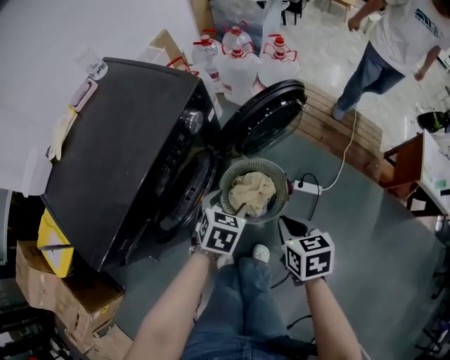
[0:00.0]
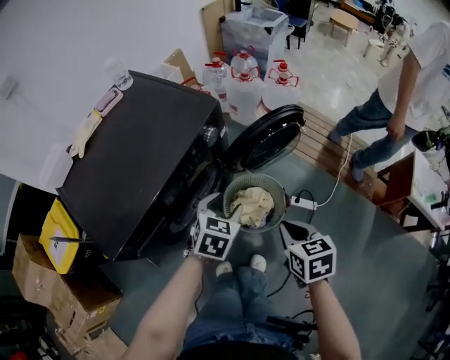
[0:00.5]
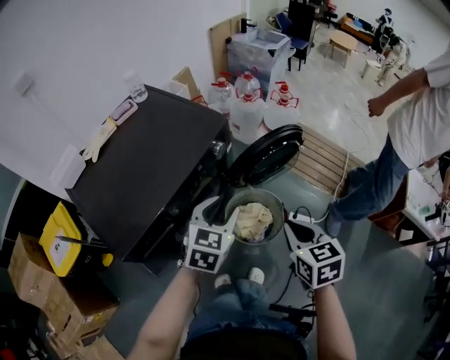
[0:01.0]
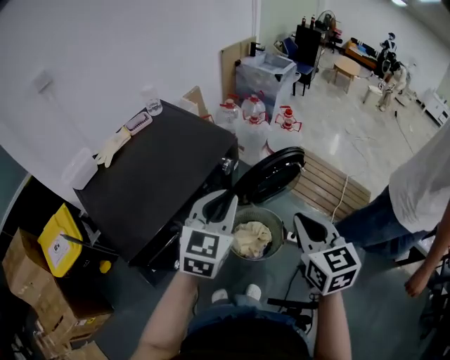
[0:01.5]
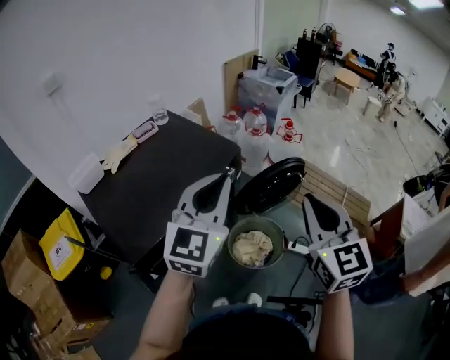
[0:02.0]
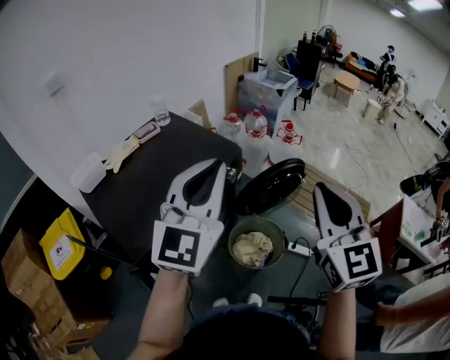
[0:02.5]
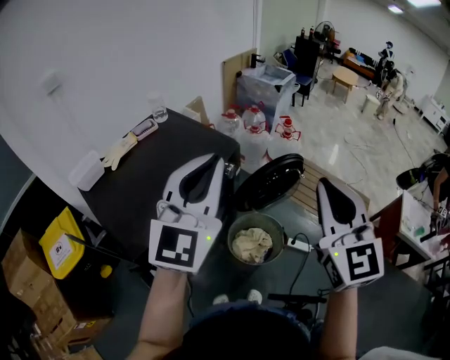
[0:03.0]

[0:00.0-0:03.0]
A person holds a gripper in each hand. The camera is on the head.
0:00.0 to 0:01.5: Both grippers move upward, approximately 30 cm. The left gripper points its fingers roughly 40 degrees further upward, and closes its fingers. Meanwhile the right gripper turns by approximately 30 degrees.
0:01.5 to 0:03.0: Both grippers move upward, approximately 15 cm. The right gripper swivels about 30 degrees, while the left gripper changes its angle by approximately 30 degrees.

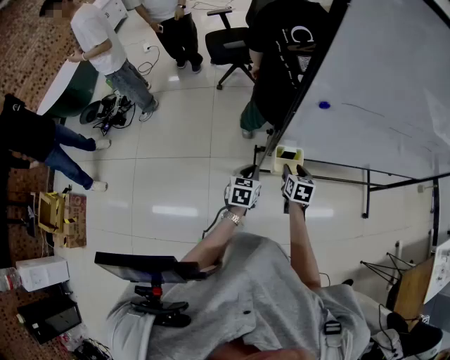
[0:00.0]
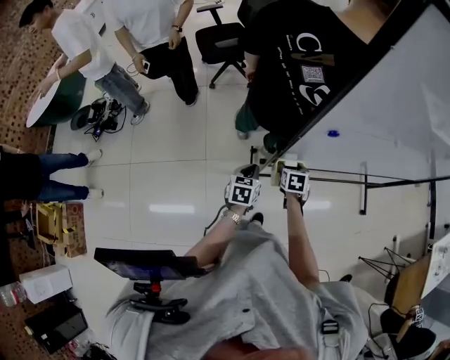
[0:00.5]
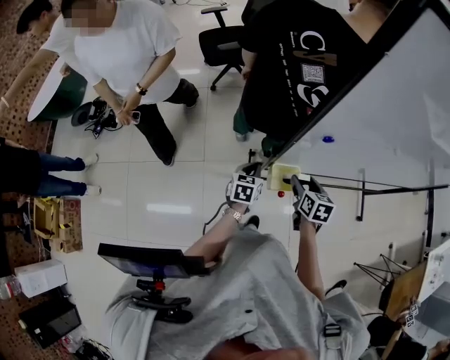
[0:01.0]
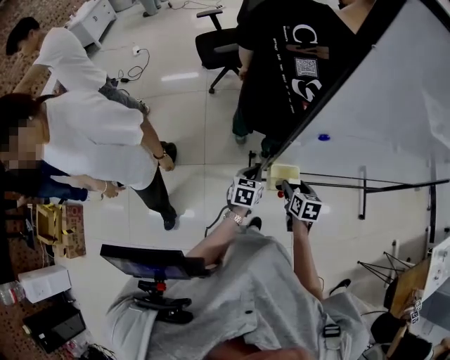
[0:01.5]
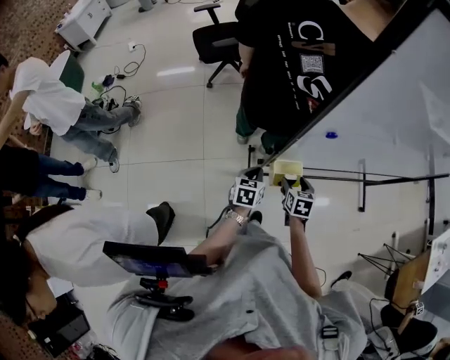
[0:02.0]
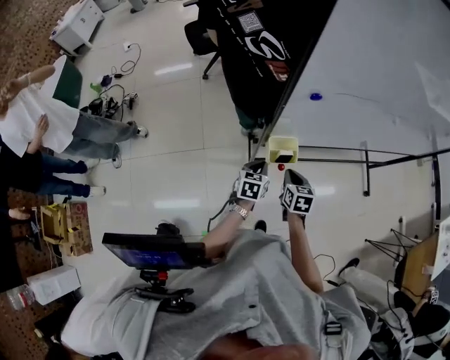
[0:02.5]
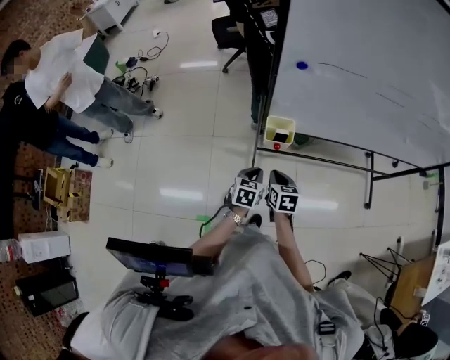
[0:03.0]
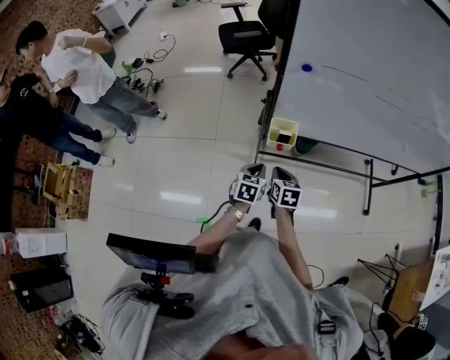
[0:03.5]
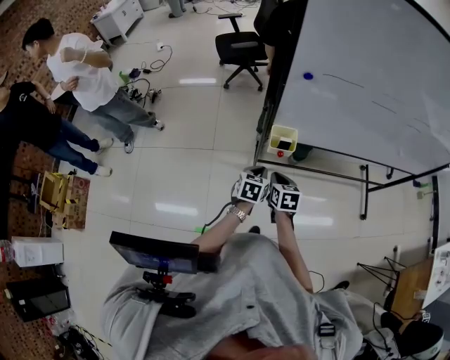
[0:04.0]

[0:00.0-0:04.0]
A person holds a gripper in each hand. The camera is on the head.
0:00.0 to 0:02.0: The left gripper travels forward by some 5 cm. The right gripper goes up and down, some 10 cm each way, reversing 2 times, and opens its fingers.
0:02.0 to 0:04.0: The two grippers go approximately 20 cm backward. The right gripper closes its fingers.

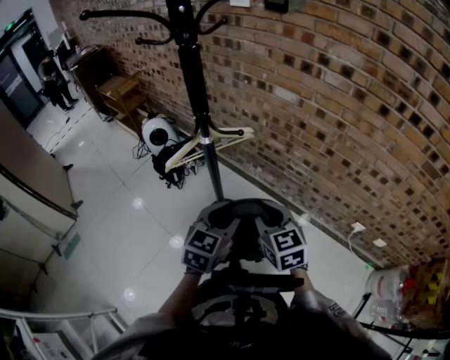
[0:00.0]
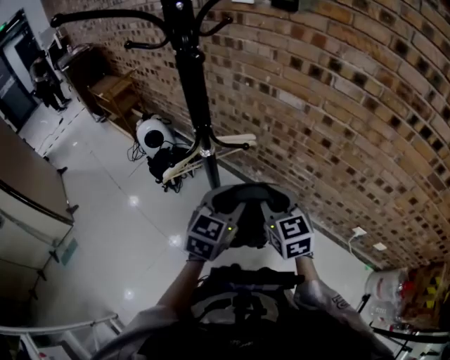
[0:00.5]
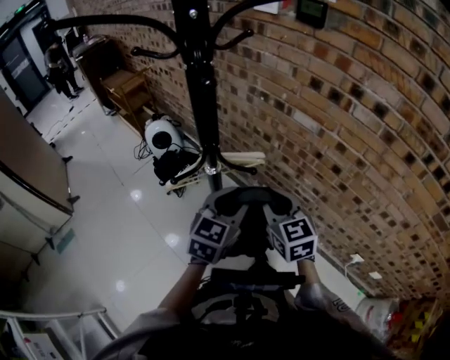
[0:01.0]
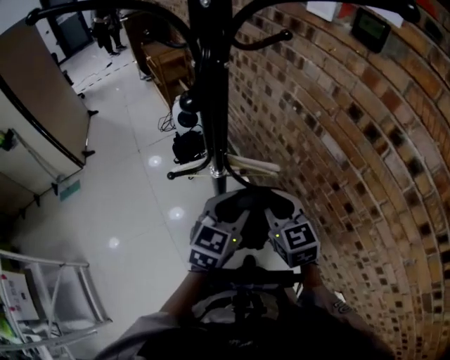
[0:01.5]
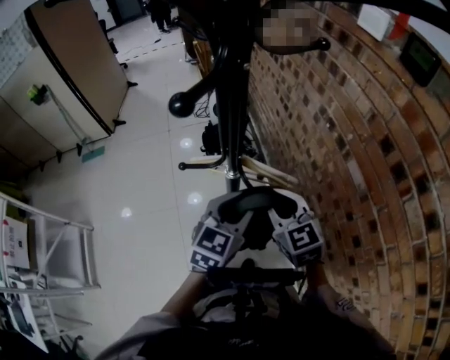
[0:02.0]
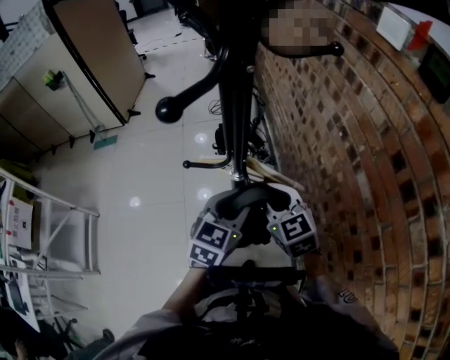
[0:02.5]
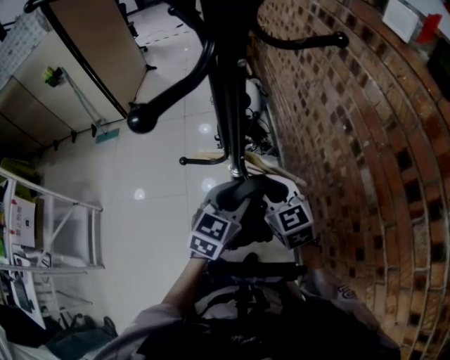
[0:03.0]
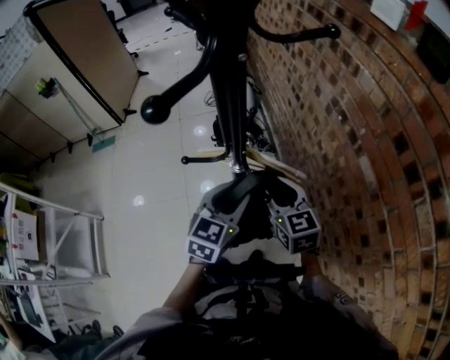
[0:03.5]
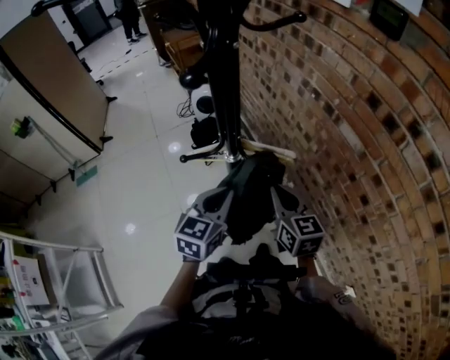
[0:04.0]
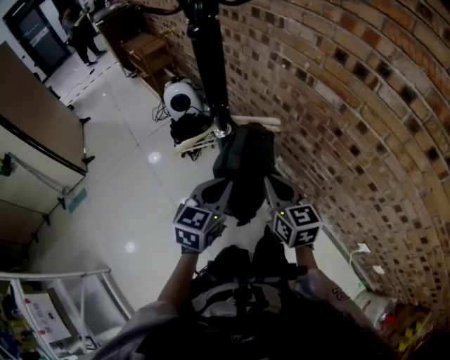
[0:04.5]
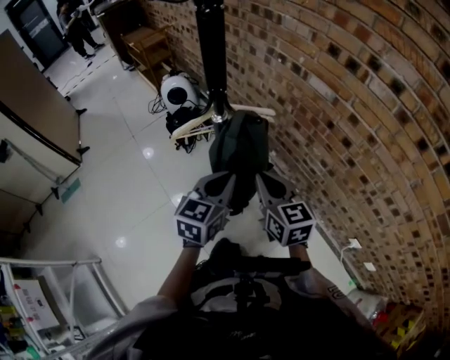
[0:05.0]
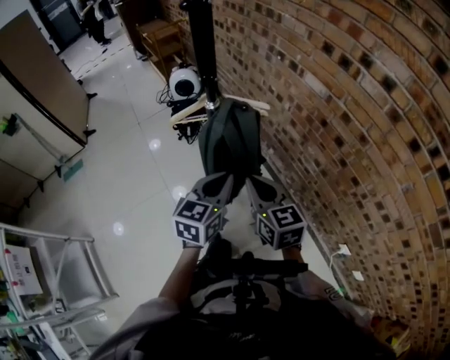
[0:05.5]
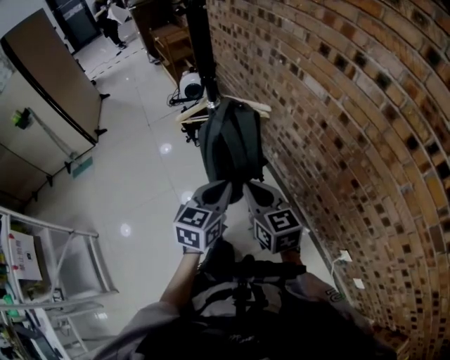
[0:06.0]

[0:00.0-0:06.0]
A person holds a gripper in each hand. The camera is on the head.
0:00.0 to 0:02.0: The right gripper shifts by approximately 25 cm, and turns by some 50 degrees; the left gripper ends up roughly 20 cm from where it was, and turns by roughly 30 degrees.
0:02.0 to 0:04.0: The left gripper travels to the left by approximately 5 cm, and closes, while the right gripper ends up approximately 5 cm from where it was, and rotates about 30 degrees.
0:04.0 to 0:06.0: The right gripper travels backward by some 20 cm. The left gripper is displaced backward and to the right by about 20 cm.

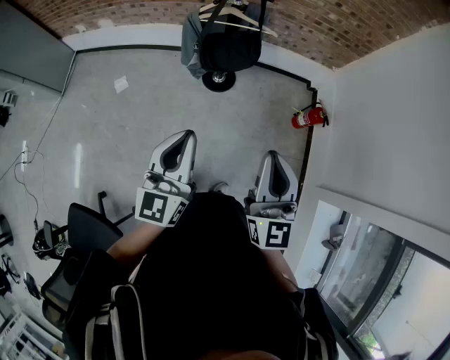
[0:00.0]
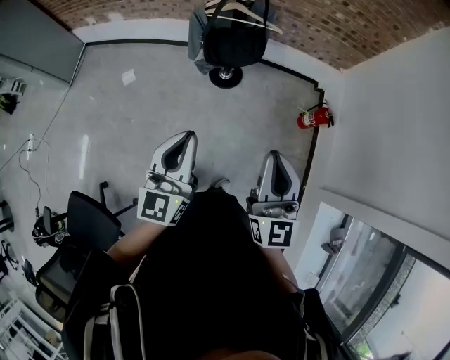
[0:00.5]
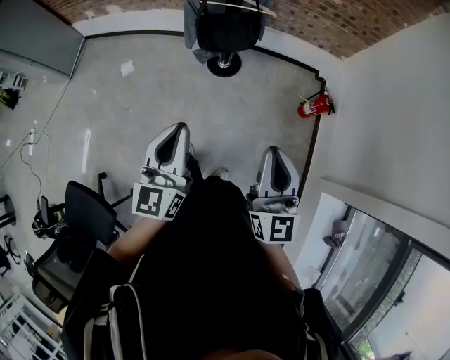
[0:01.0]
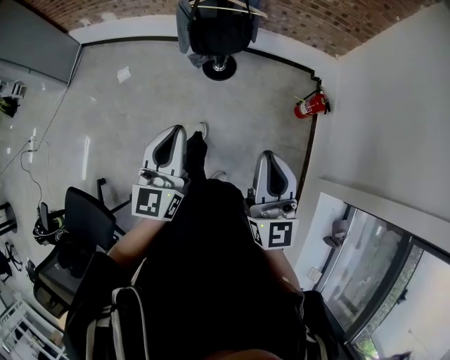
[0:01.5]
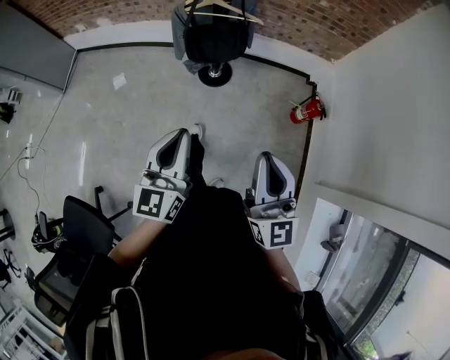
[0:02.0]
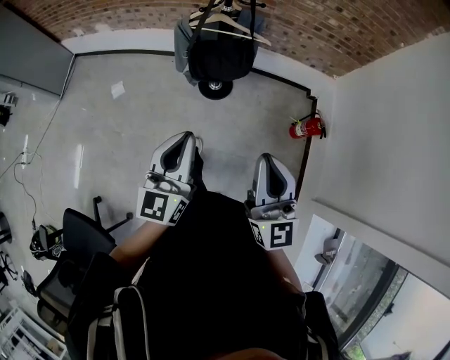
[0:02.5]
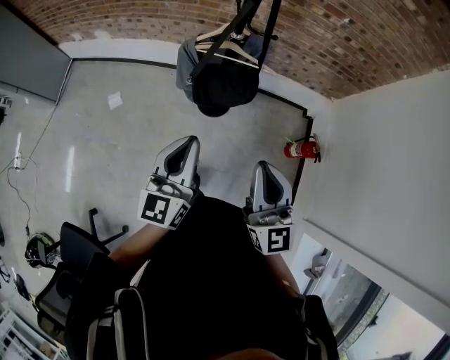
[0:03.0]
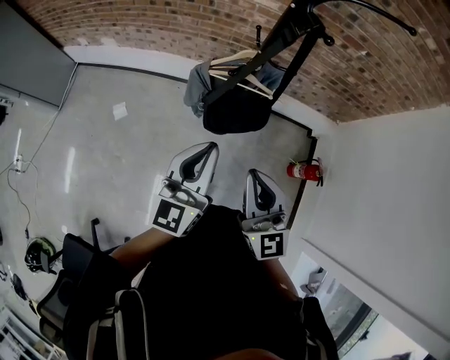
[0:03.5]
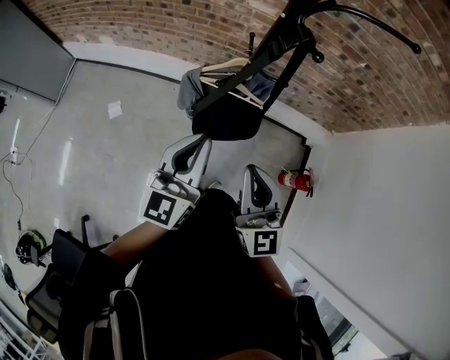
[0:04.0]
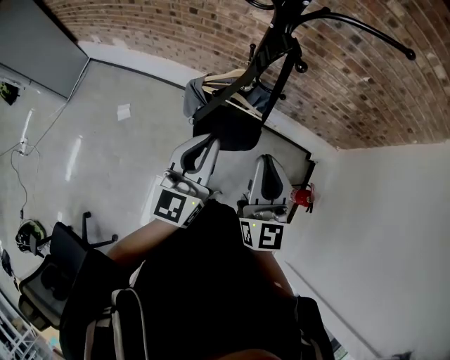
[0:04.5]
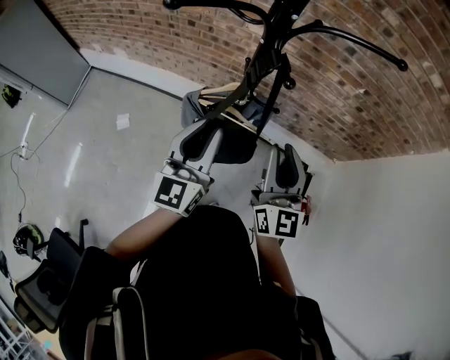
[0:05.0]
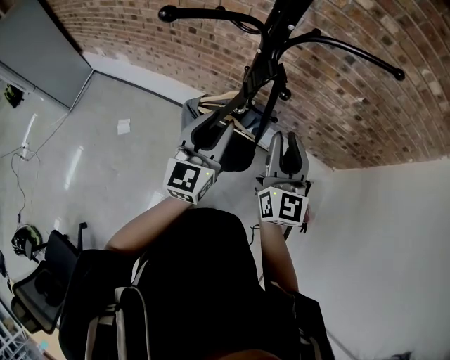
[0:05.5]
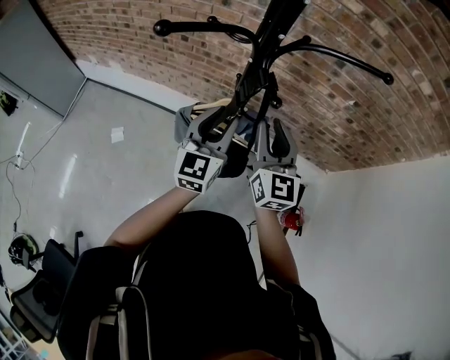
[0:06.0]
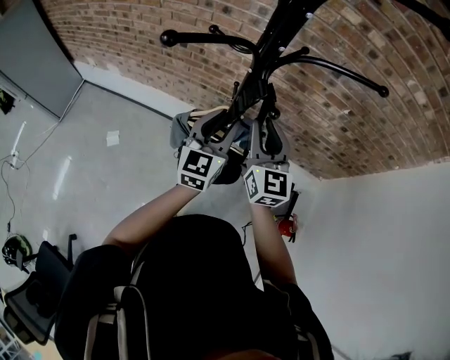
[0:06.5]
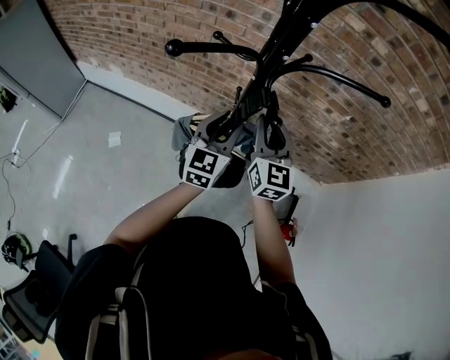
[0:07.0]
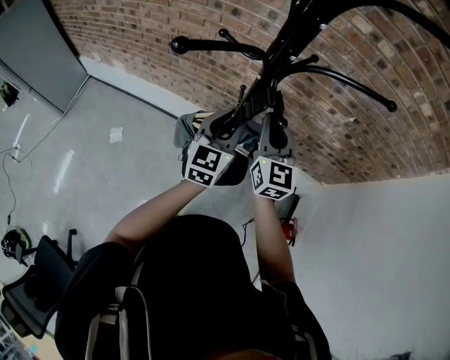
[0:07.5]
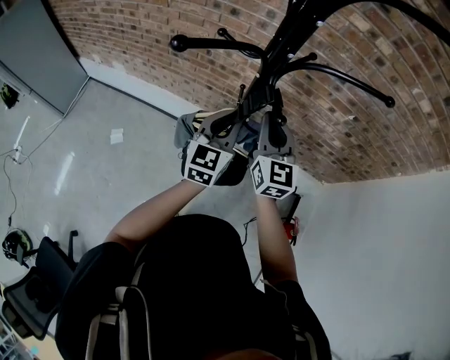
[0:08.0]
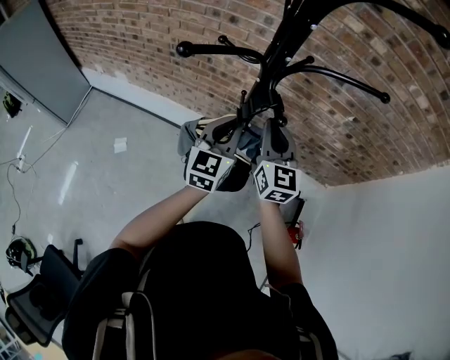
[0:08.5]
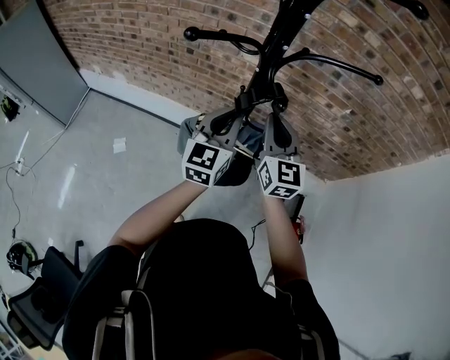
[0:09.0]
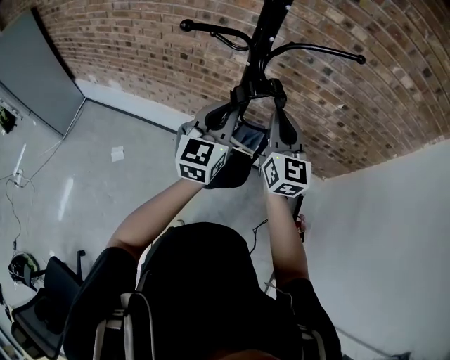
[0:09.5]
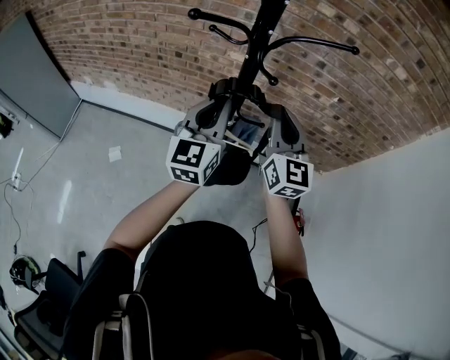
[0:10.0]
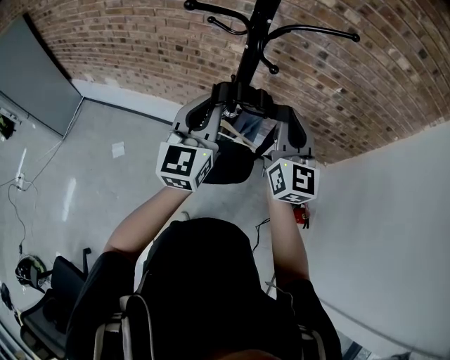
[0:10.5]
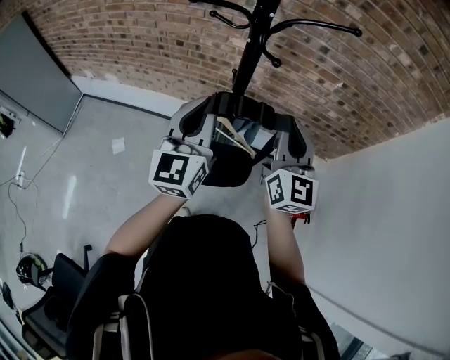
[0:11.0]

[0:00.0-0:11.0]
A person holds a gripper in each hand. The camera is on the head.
0:00.0 to 0:02.0: The grippers both shift to the right by approximately 10 cm.
0:02.0 to 0:03.5: The left gripper shifts about 30 cm forward. Meanwhile the right gripper moves forward and to the left, some 35 cm.
0:03.5 to 0:05.5: Both grippers move forward and to the right, approximately 25 cm. The left gripper opens.
0:05.5 to 0:07.5: Both grippers travel together forward, approximately 10 cm.
0:07.5 to 0:09.0: The left gripper goes about 5 cm upward, and closes up.
0:09.0 to 0:11.0: The right gripper is displaced backward by approximately 10 cm; the left gripper is displaced backward and upward by approximately 10 cm.

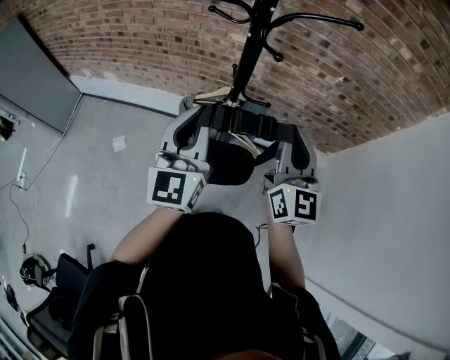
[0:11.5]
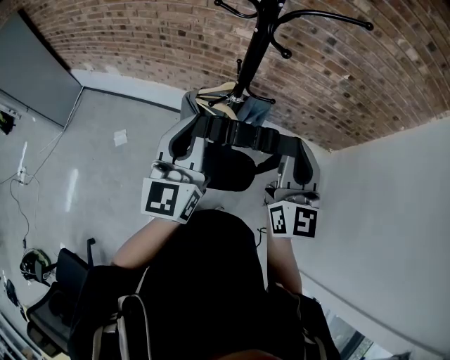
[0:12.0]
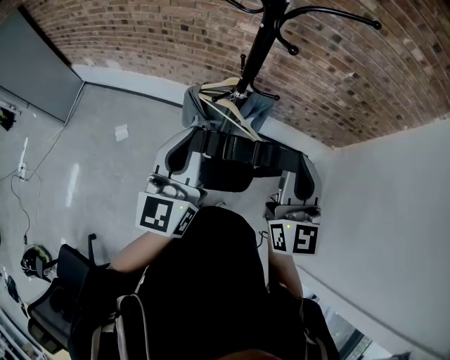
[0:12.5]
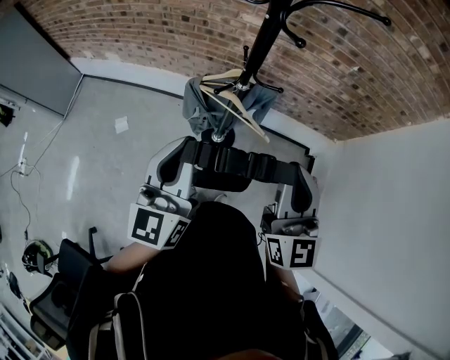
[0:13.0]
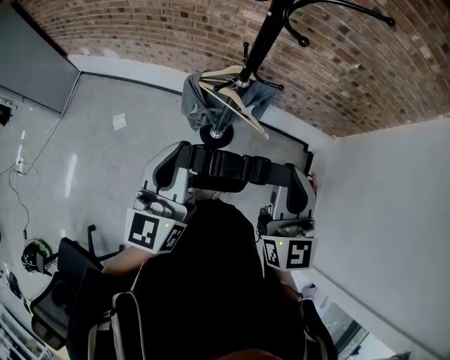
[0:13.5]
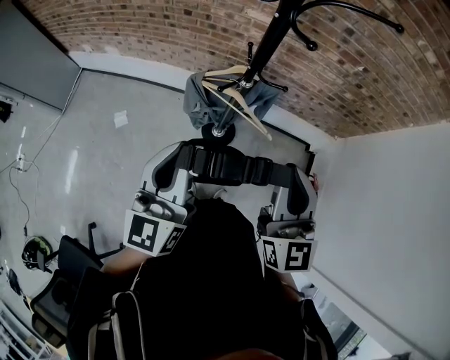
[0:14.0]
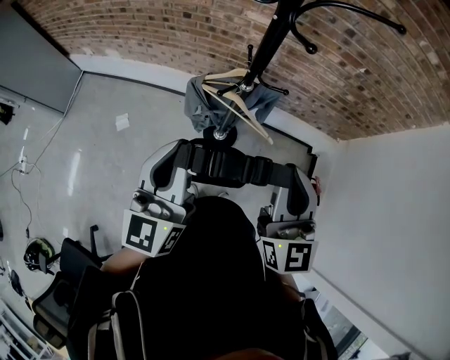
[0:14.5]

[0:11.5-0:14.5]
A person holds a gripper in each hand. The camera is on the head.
0:11.5 to 0:13.0: The grippers both shift backward by roughly 10 cm.
0:13.0 to 0:14.5: There are only small adjustments of the grippers.
